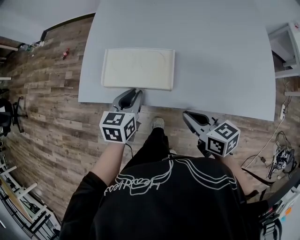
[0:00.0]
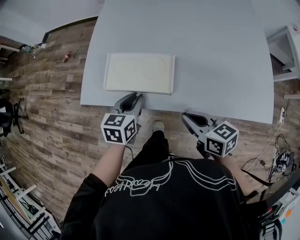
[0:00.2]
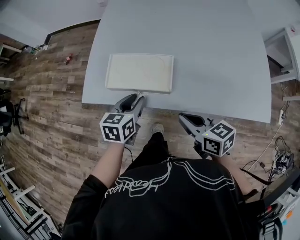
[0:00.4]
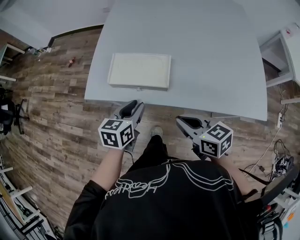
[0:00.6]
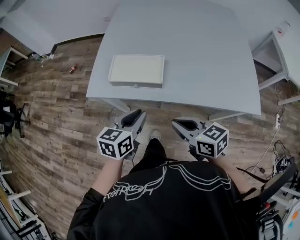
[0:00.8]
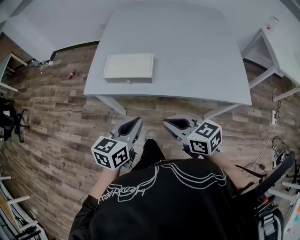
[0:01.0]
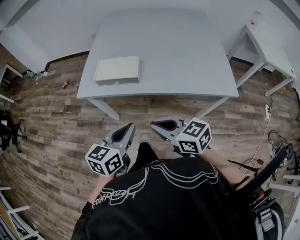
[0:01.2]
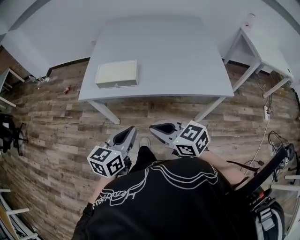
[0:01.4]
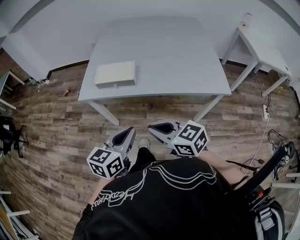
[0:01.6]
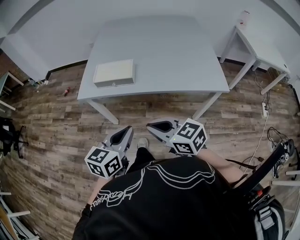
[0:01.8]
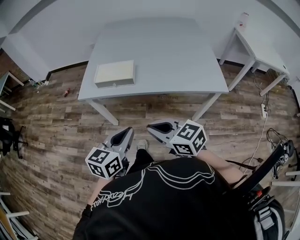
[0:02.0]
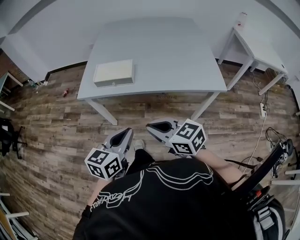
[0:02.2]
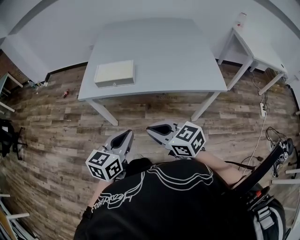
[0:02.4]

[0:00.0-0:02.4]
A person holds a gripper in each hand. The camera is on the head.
0:00.0 to 0:01.2: The two grippers go about 25 cm backward and upward. The right gripper turns by approximately 20 degrees.
0:01.2 to 0:02.4: The two grippers go roughly 10 cm backward.

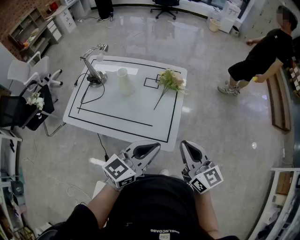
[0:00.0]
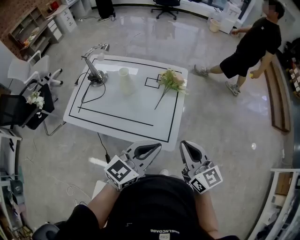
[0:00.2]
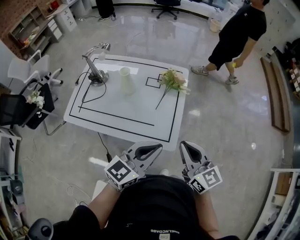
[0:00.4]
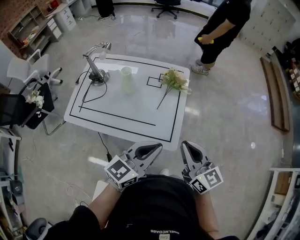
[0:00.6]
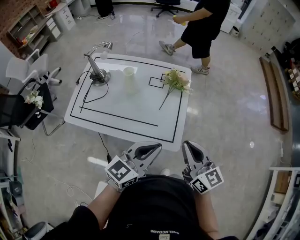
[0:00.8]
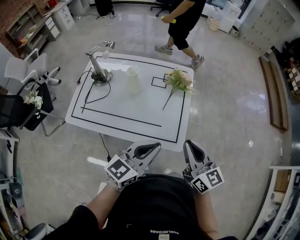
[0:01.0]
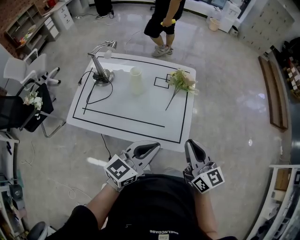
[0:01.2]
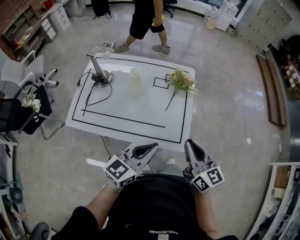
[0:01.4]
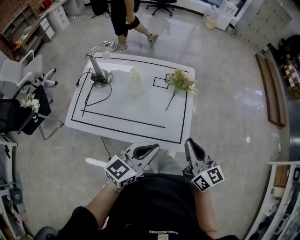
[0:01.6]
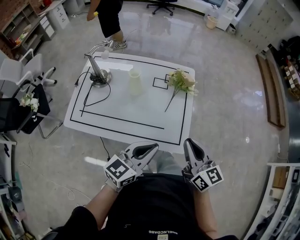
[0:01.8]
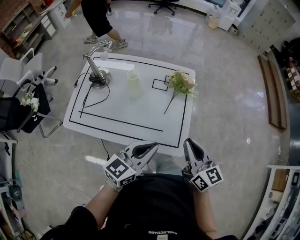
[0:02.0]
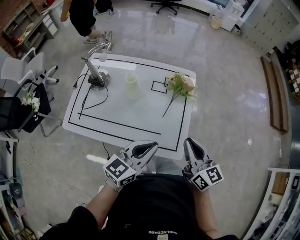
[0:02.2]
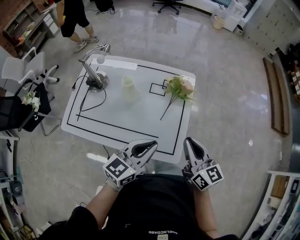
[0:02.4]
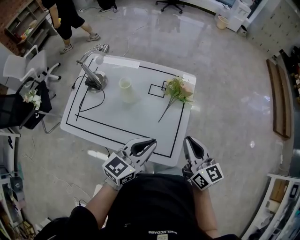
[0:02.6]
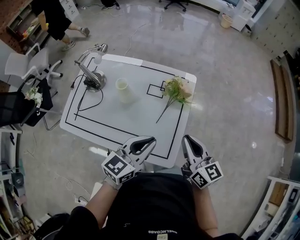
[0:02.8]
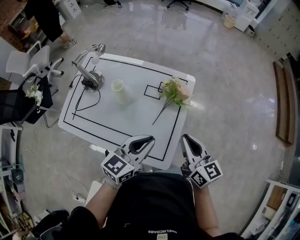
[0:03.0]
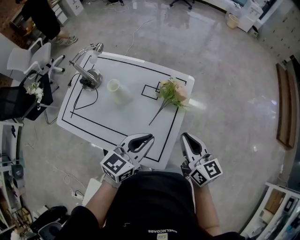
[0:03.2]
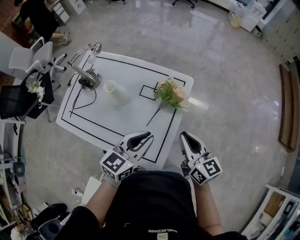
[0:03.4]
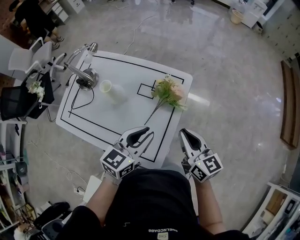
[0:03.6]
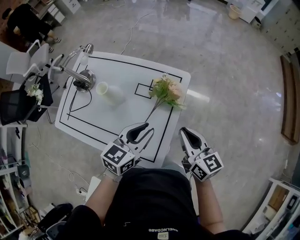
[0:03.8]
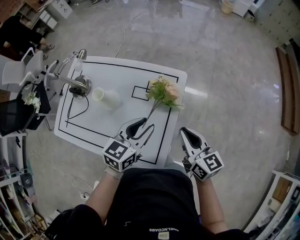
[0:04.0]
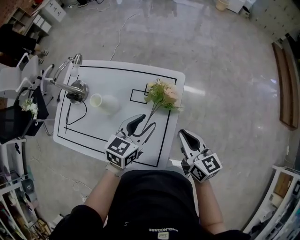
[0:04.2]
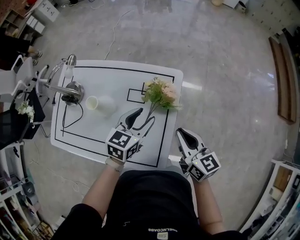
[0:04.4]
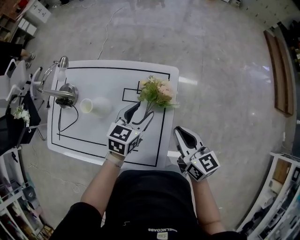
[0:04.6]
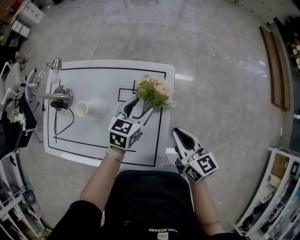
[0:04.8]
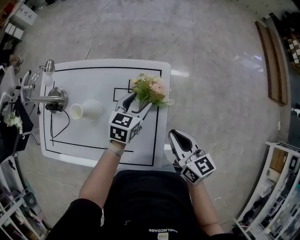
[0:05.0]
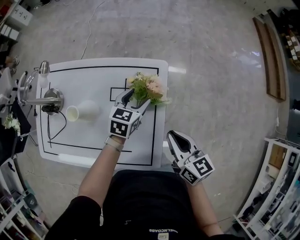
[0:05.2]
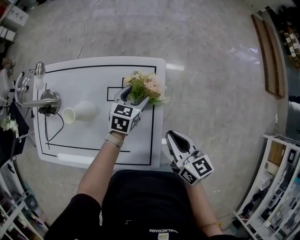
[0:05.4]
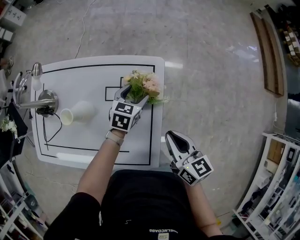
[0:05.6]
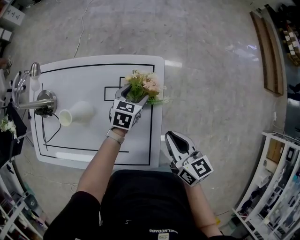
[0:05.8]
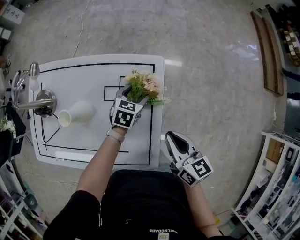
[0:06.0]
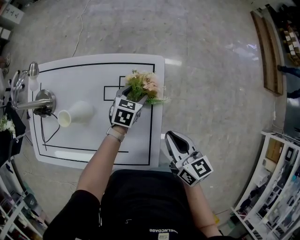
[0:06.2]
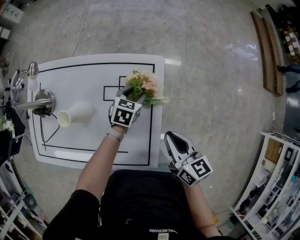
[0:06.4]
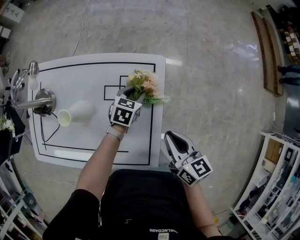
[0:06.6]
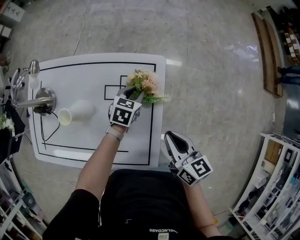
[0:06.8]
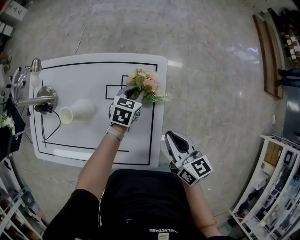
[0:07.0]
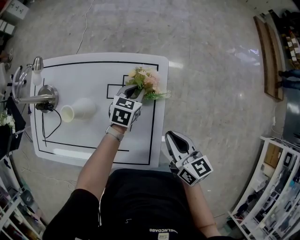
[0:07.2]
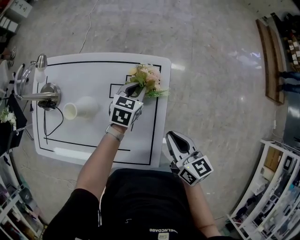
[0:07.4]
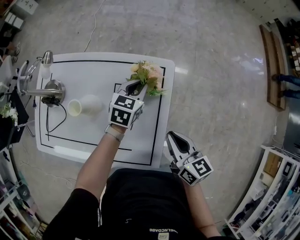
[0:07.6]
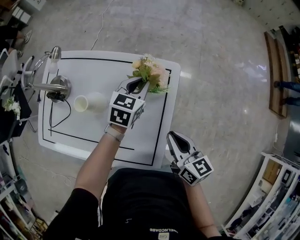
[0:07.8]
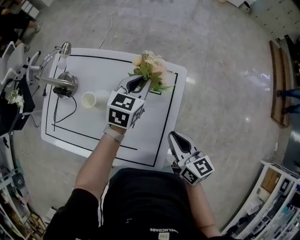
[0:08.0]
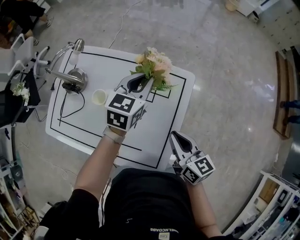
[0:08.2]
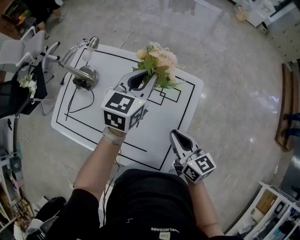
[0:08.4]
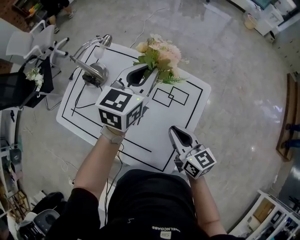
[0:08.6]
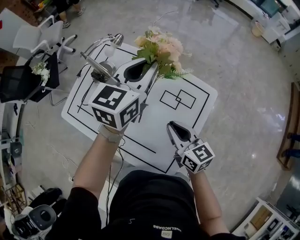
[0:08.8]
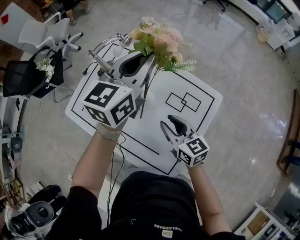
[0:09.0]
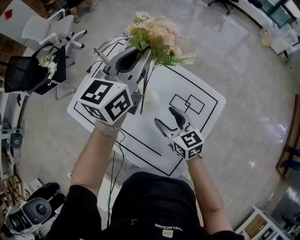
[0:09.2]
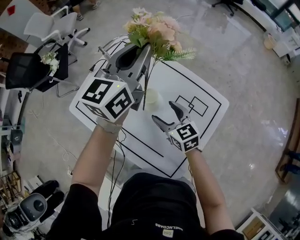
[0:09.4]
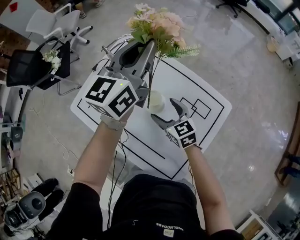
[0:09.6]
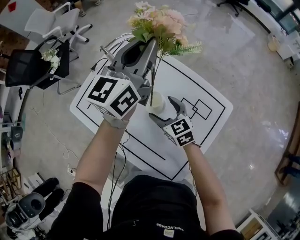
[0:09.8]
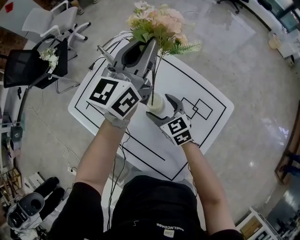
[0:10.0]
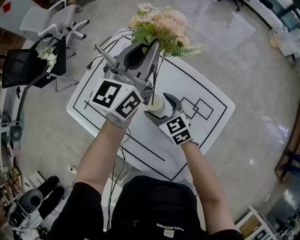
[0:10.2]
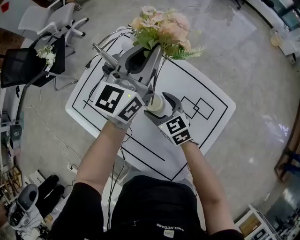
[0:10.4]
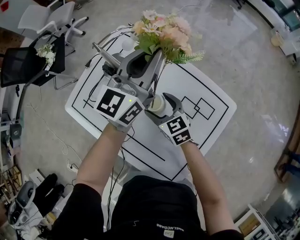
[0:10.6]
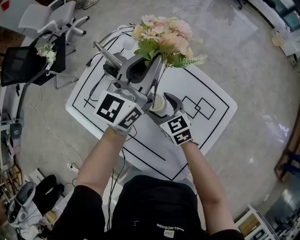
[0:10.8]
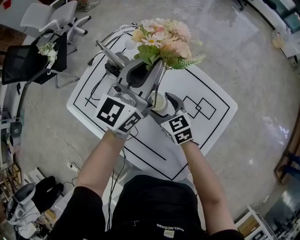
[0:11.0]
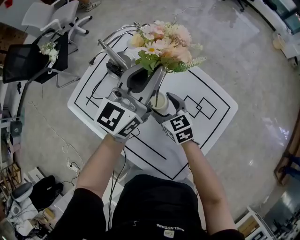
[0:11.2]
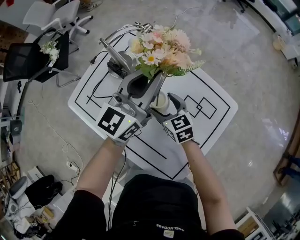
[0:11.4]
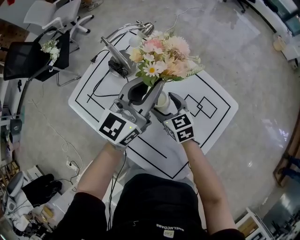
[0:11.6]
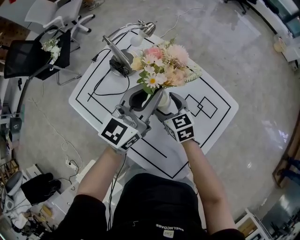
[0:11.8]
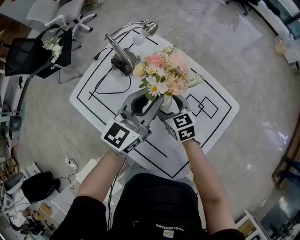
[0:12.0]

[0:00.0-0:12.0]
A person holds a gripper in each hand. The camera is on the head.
0:00.0 to 0:01.6: The grippers both shift to the left by some 10 cm.
0:01.6 to 0:03.0: The left gripper moves forward and to the right, about 15 cm. Meanwhile the right gripper moves forward, approximately 15 cm.
0:03.0 to 0:04.4: The left gripper is displaced forward and downward by approximately 20 cm, and opens up. Meanwhile the right gripper goes approximately 10 cm forward and downward.
0:04.4 to 0:06.0: The left gripper goes roughly 20 cm downward and forward.
0:06.0 to 0:07.6: The left gripper heads upward, covering about 10 cm, and closes its fingers.
0:07.6 to 0:09.0: The right gripper changes place by some 20 cm, and turns by about 40 degrees, while the left gripper shifts some 25 cm upward, and swivels approximately 40 degrees.
0:09.0 to 0:10.4: The left gripper heads forward, covering some 5 cm. Meanwhile the right gripper moves forward, to the left and downward, approximately 15 cm, changes its angle by about 20 degrees, and opens up.
0:10.4 to 0:12.0: The left gripper moves backward and downward, roughly 15 cm.

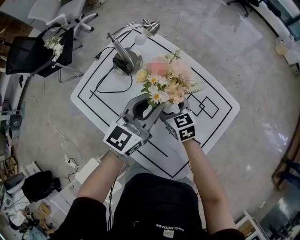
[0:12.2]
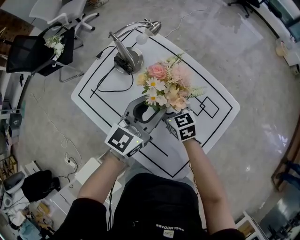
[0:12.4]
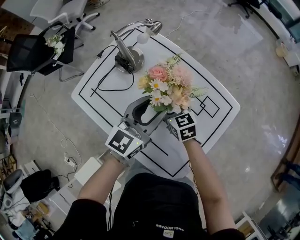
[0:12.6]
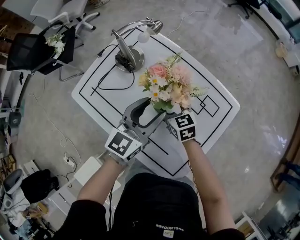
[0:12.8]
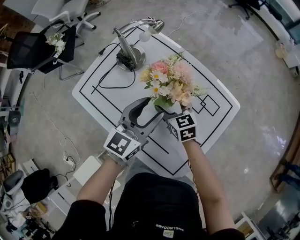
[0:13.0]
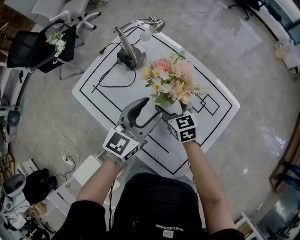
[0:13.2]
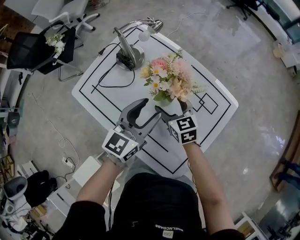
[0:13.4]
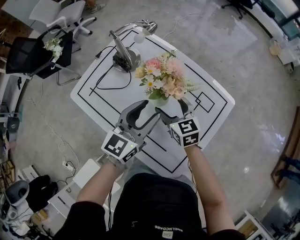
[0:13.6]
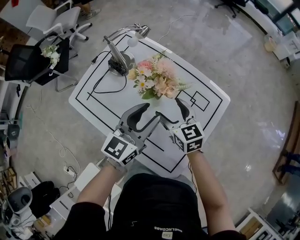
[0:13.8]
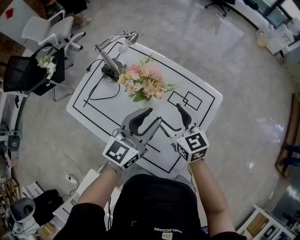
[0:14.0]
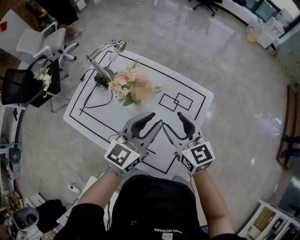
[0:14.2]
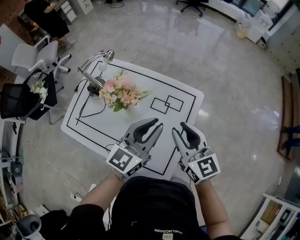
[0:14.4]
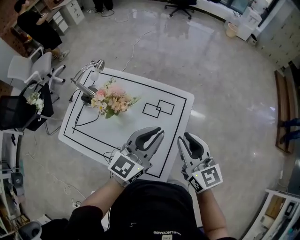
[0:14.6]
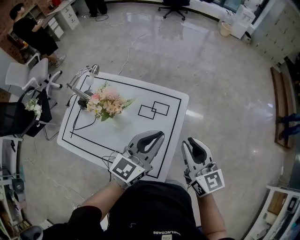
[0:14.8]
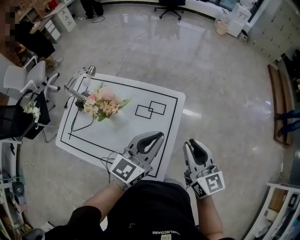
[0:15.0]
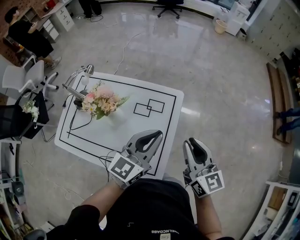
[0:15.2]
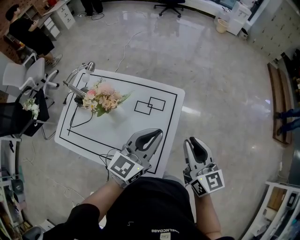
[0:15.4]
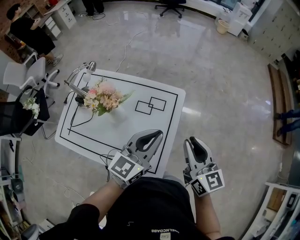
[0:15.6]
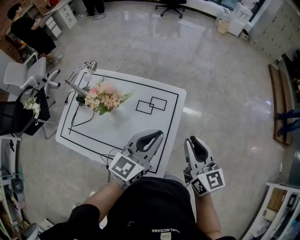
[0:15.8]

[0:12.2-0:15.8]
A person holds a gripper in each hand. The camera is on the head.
0:12.2 to 0:14.0: The left gripper travels backward by about 10 cm. The right gripper heads upward, backward and to the right, covering approximately 15 cm.
0:14.0 to 0:15.8: The right gripper moves to the right and upward, roughly 25 cm, swivels some 30 degrees, and closes its fingers, while the left gripper is displaced to the right by roughly 15 cm, and closes its fingers.

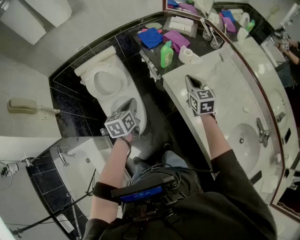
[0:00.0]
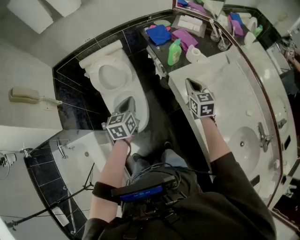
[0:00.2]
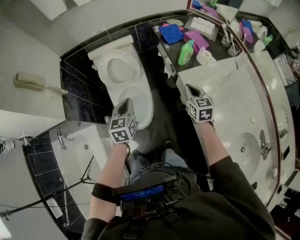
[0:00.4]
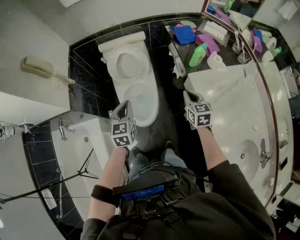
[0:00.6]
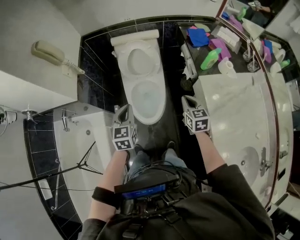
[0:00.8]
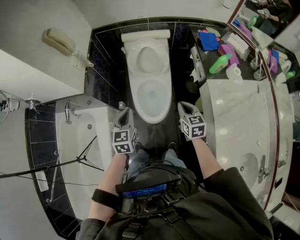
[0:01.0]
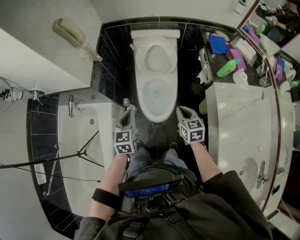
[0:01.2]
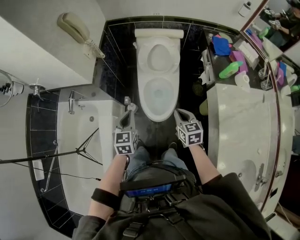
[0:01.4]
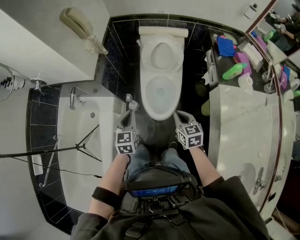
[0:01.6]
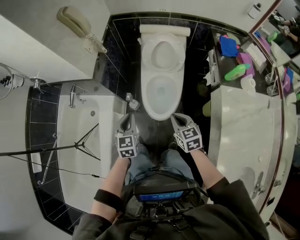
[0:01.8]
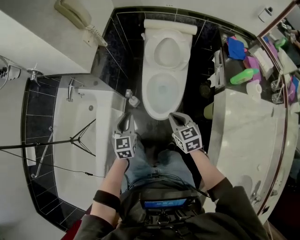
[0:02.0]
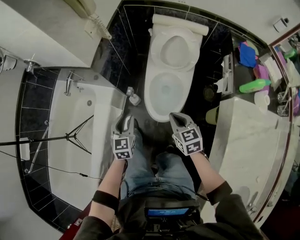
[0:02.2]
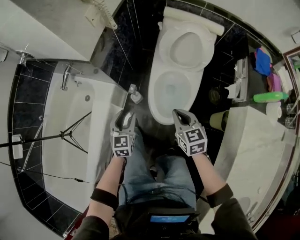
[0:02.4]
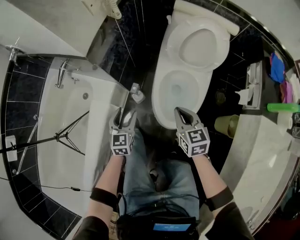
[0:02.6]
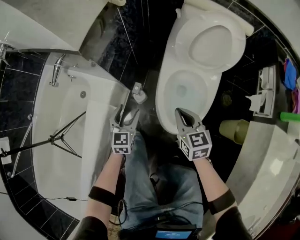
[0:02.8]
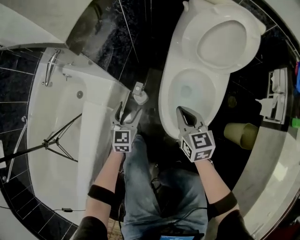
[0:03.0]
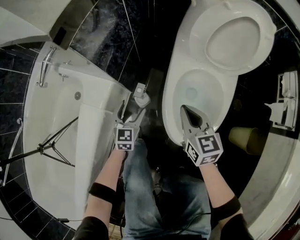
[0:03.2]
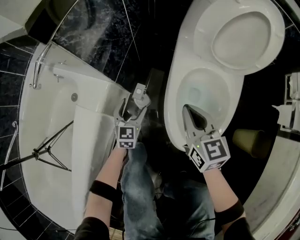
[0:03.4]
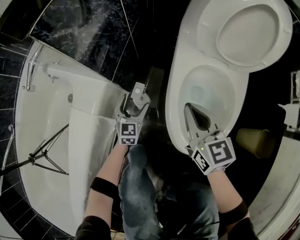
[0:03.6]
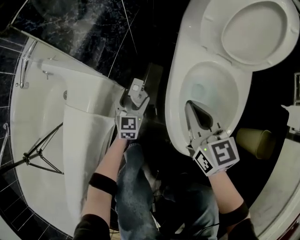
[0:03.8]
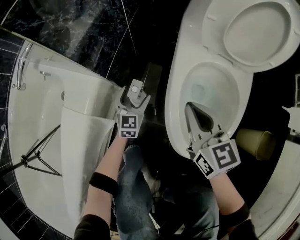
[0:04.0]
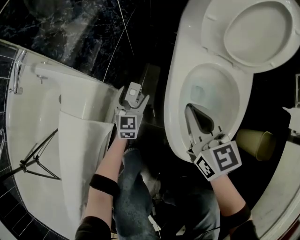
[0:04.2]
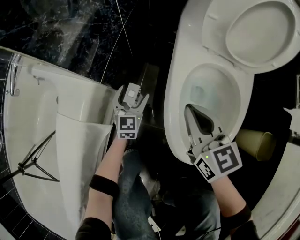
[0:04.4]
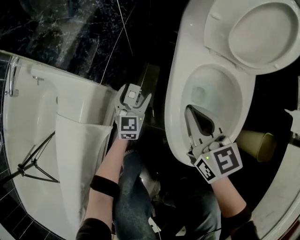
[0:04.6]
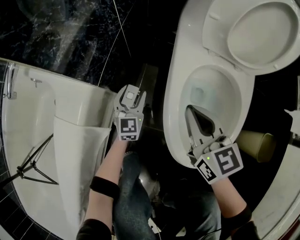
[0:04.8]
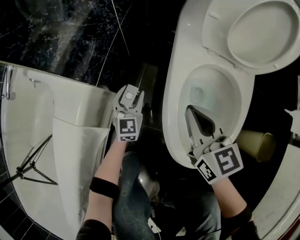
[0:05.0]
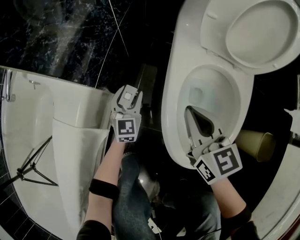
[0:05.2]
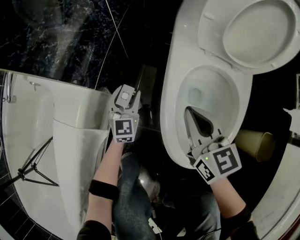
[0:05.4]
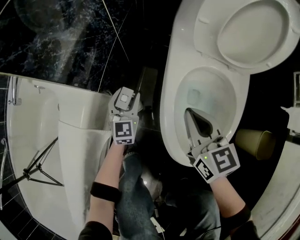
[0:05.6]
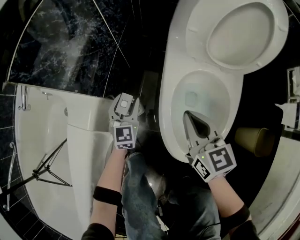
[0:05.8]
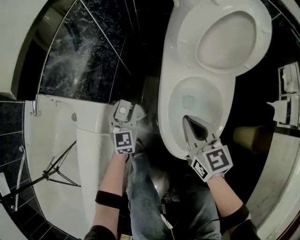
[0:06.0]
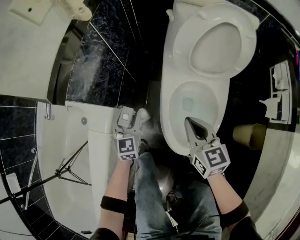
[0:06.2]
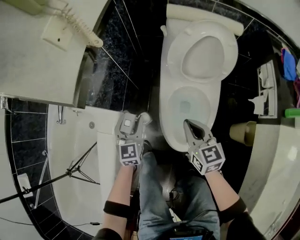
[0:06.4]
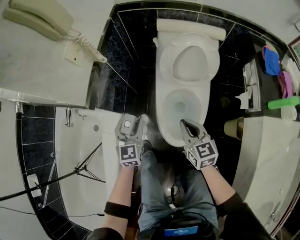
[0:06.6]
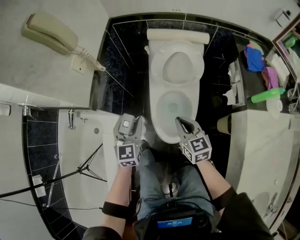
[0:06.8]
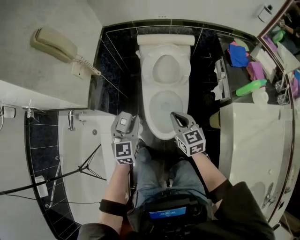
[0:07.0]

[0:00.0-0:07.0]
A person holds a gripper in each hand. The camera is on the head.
0:00.0 to 0:01.4: The left gripper moves approximately 30 cm, and changes its angle by some 30 degrees. The right gripper shifts by approximately 40 cm, and changes its angle by about 30 degrees.
0:01.4 to 0:02.8: The left gripper goes roughly 35 cm downward, and opens its fingers; the right gripper goes about 35 cm downward, forward and to the left.
0:02.8 to 0:04.2: The right gripper goes some 15 cm downward and forward. The left gripper moves downward and forward, about 30 cm.
0:04.2 to 0:05.6: The left gripper moves roughly 5 cm, and closes up.
0:05.6 to 0:07.0: Both grippers travel together upward, approximately 50 cm.
